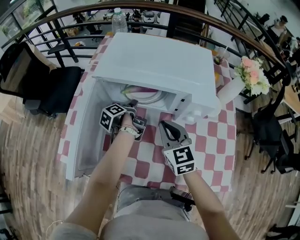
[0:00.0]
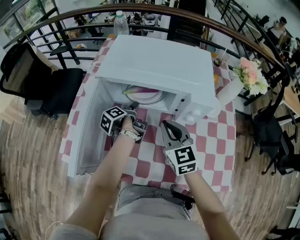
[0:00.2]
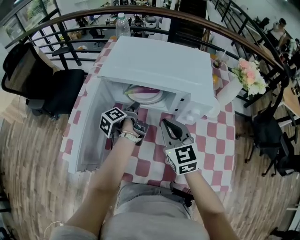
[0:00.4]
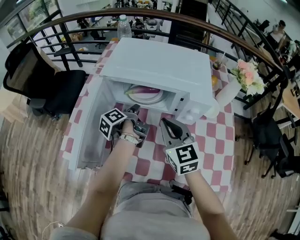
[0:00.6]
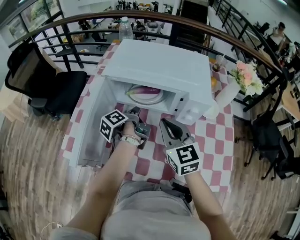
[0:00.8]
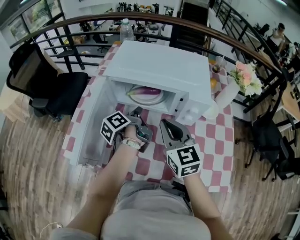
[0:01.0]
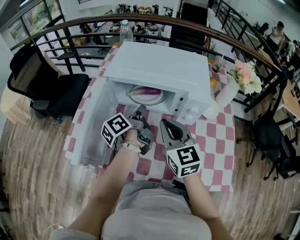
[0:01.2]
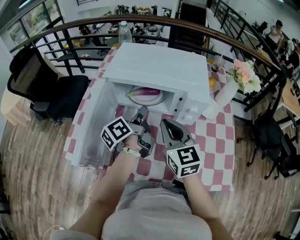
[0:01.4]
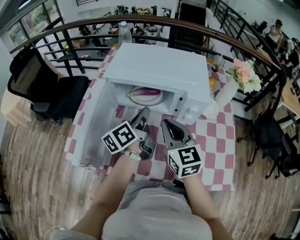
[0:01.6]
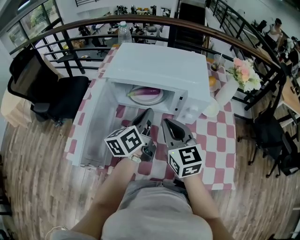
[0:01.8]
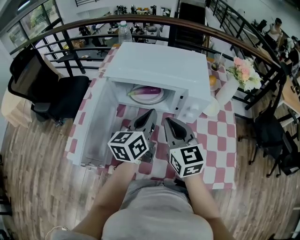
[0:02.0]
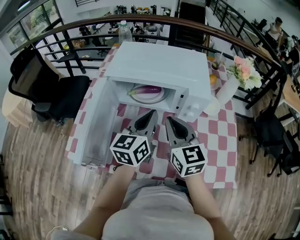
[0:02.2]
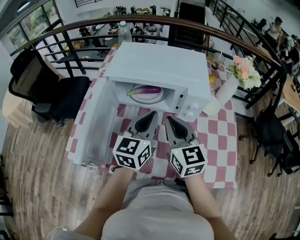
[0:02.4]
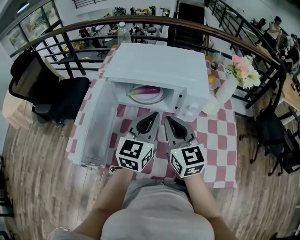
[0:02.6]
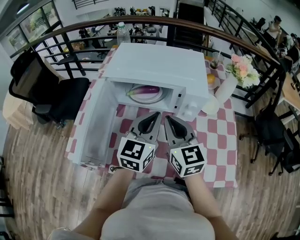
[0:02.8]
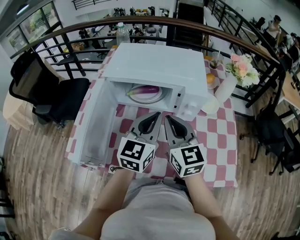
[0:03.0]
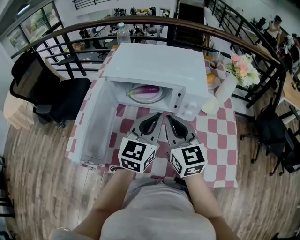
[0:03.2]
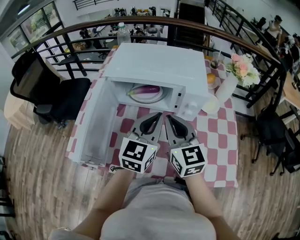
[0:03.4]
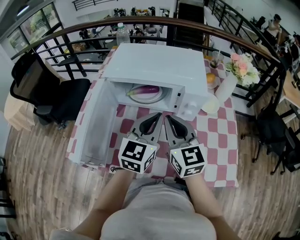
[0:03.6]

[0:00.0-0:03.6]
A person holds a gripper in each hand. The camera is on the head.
0:00.0 to 0:01.8: The right gripper is displaced upward by roughly 5 cm.

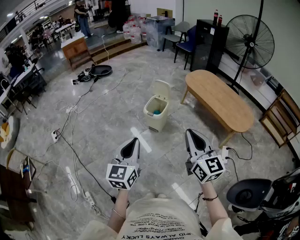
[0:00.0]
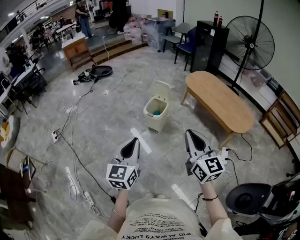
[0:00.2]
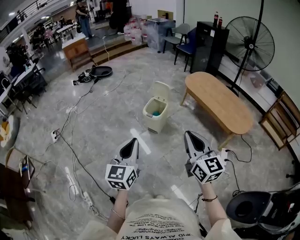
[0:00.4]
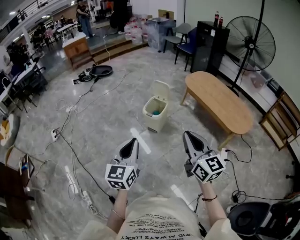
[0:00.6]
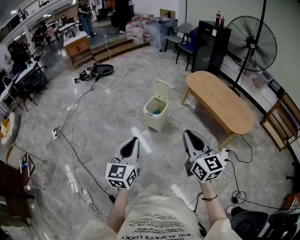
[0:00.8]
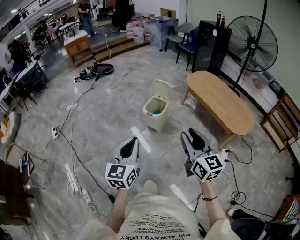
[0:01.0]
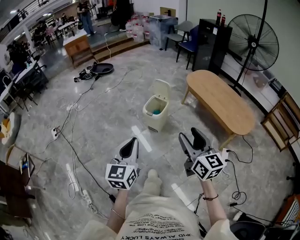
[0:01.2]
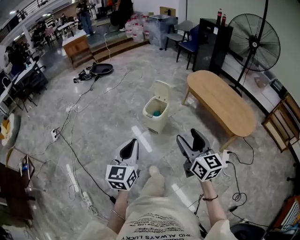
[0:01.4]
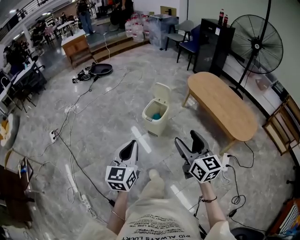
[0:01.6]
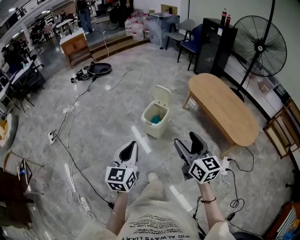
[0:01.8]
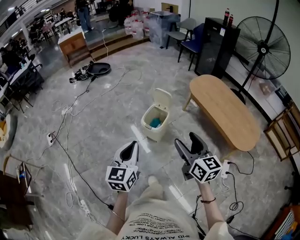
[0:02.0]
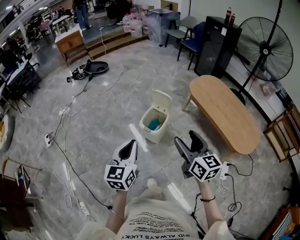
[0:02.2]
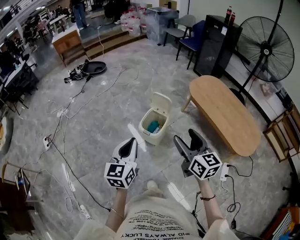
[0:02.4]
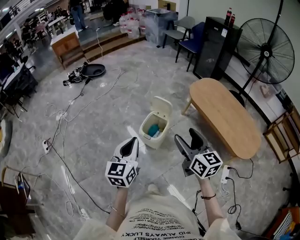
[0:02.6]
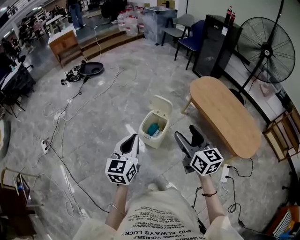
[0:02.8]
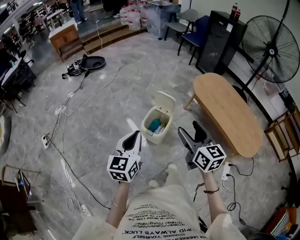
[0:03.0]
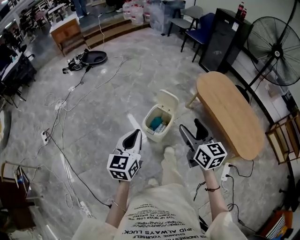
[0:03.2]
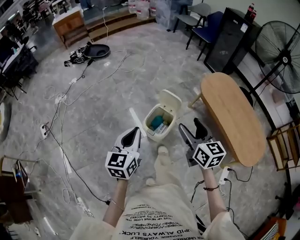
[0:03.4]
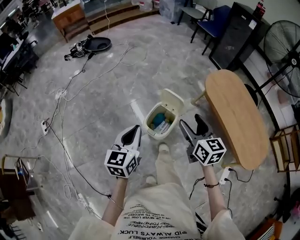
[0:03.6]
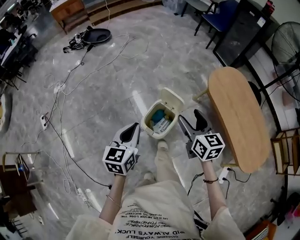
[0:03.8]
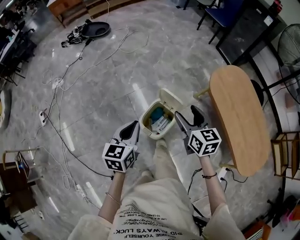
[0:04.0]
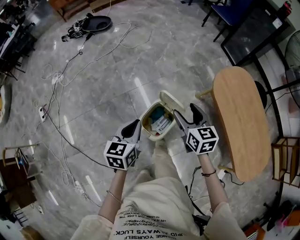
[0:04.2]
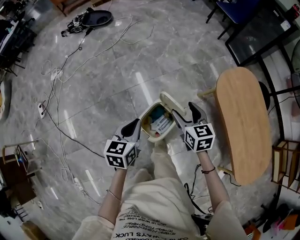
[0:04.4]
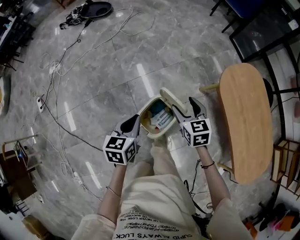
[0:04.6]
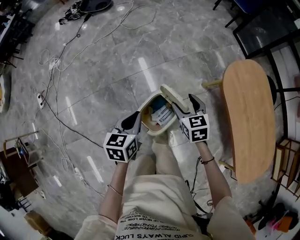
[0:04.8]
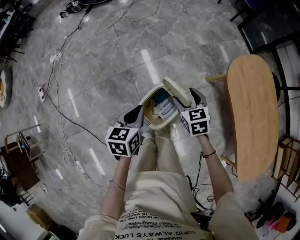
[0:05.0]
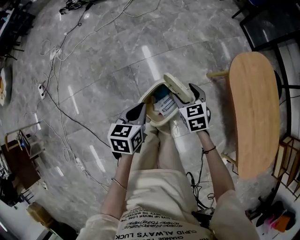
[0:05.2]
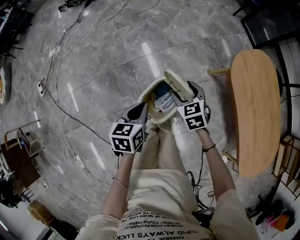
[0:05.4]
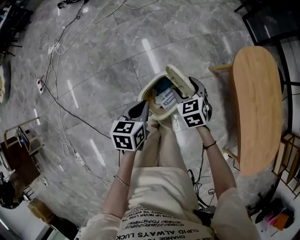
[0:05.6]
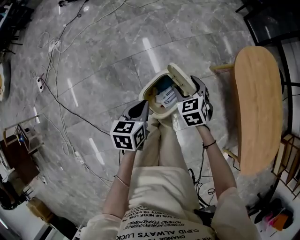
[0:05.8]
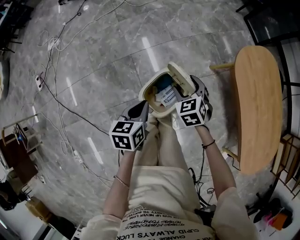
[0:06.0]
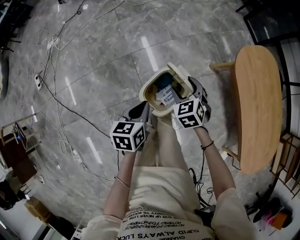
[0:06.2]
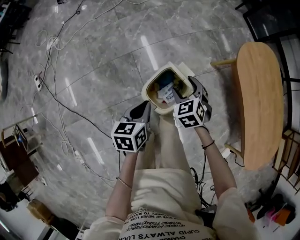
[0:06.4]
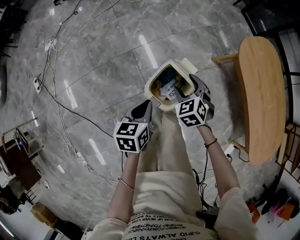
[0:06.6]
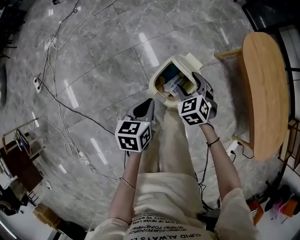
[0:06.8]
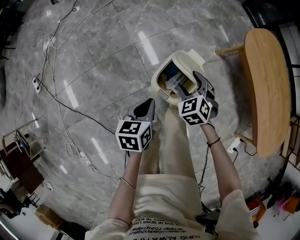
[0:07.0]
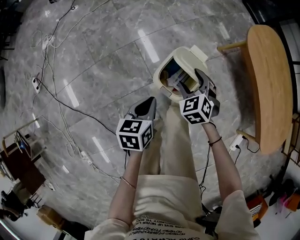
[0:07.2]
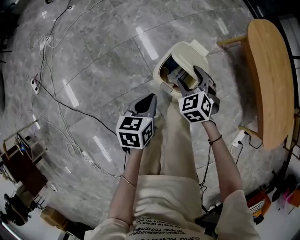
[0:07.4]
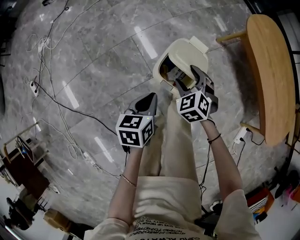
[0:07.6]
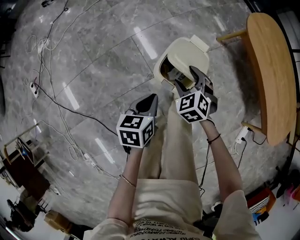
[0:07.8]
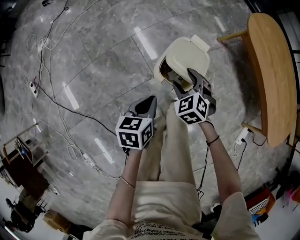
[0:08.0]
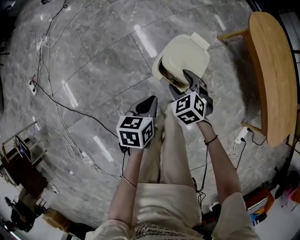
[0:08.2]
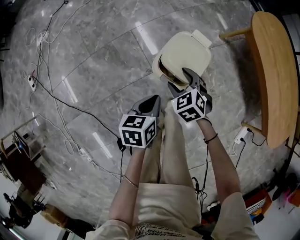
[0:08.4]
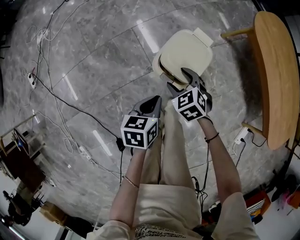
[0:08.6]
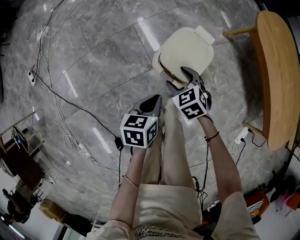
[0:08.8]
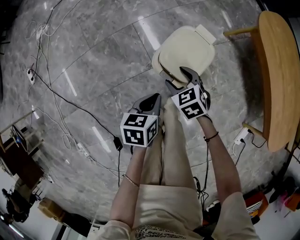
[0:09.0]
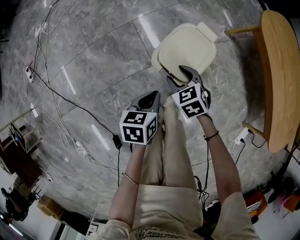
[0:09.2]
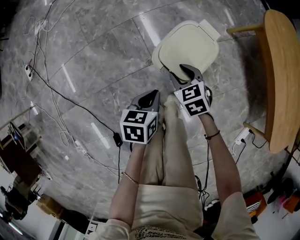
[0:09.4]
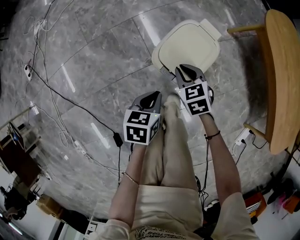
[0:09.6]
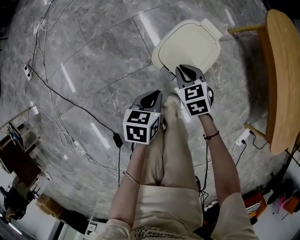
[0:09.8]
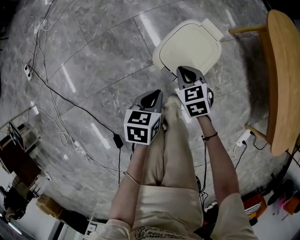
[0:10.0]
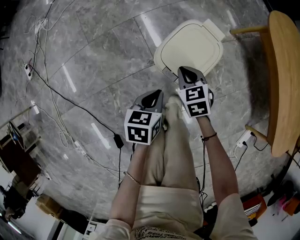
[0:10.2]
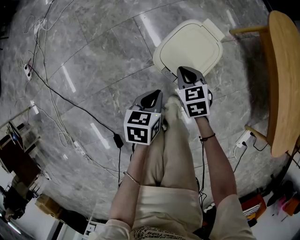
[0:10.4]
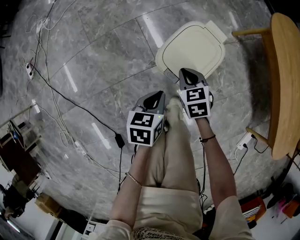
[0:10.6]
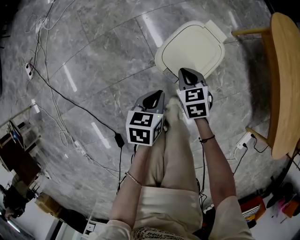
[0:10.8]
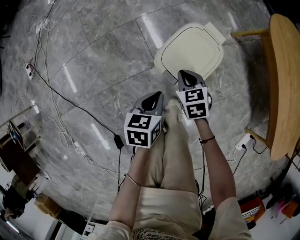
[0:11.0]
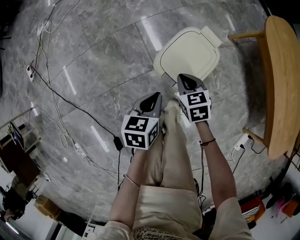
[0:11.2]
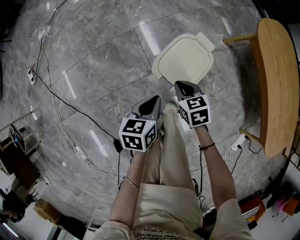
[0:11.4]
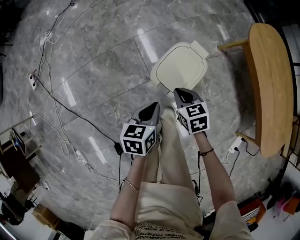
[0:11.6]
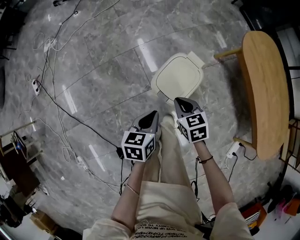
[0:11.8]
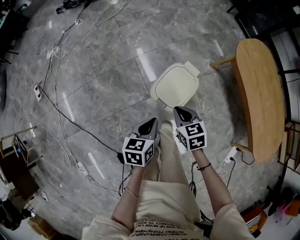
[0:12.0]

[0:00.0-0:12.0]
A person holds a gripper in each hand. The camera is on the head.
0:00.0 to 0:01.6: The right gripper shifts roughly 10 cm forward and downward, and opens its fingers. Meanwhile the left gripper heads forward, covering approximately 5 cm.
0:01.6 to 0:03.0: Both grippers travel together forward, about 25 cm.
0:03.0 to 0:04.4: The two grippers go some 35 cm forward and downward. The right gripper swivels some 30 degrees; the left gripper changes its angle by roughly 30 degrees.
0:04.4 to 0:06.0: Both grippers travel together downward, about 10 cm. The right gripper turns by roughly 30 degrees.
0:06.0 to 0:07.6: Both grippers move backward, to the left and downward, roughly 15 cm.
0:07.6 to 0:09.0: The two grippers go some 5 cm downward. The right gripper rotates about 20 degrees.
0:09.0 to 0:10.4: The left gripper moves downward, about 5 cm. Meanwhile the right gripper closes.
0:10.4 to 0:12.0: The two grippers go about 15 cm upward.

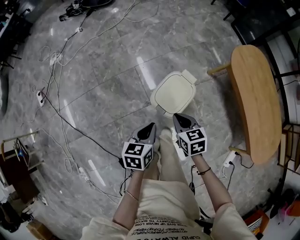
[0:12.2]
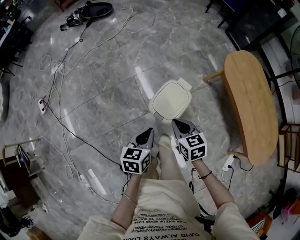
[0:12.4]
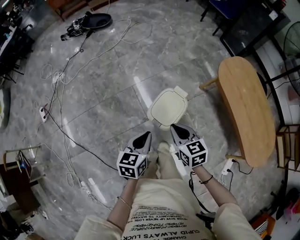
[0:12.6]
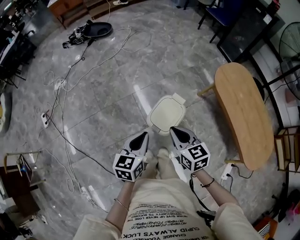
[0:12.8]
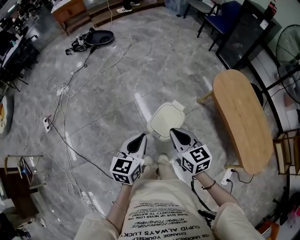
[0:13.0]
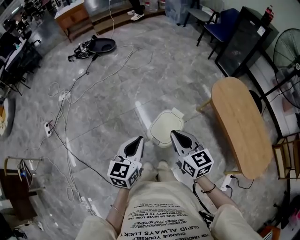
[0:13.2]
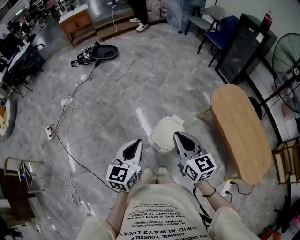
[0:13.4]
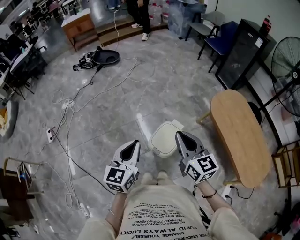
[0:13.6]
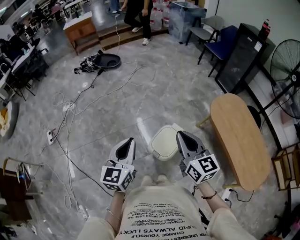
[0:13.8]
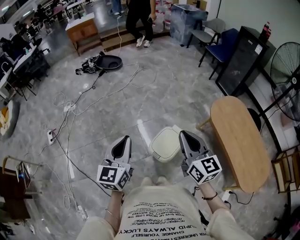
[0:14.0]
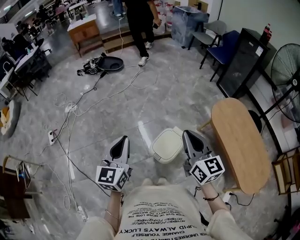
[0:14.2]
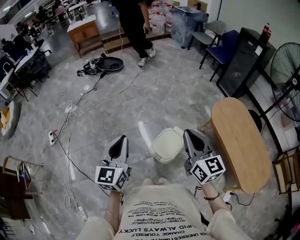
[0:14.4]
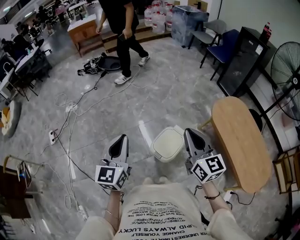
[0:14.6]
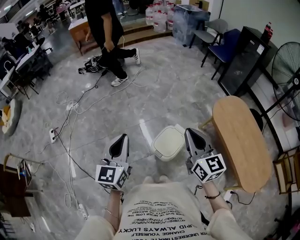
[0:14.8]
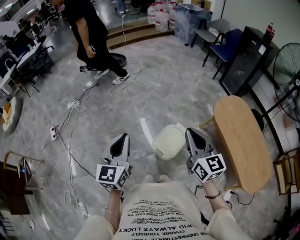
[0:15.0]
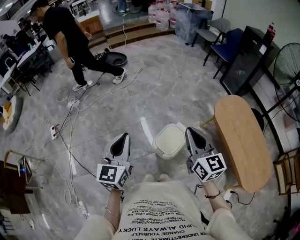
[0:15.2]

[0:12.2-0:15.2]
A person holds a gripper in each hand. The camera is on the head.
0:12.2 to 0:13.8: The two grippers go about 30 cm upward. The left gripper points its fingers roughly 30 degrees further upward. Meanwhile the right gripper tips its fingers upward by roughly 40 degrees.
0:13.8 to 0:15.2: The grippers move only a little.

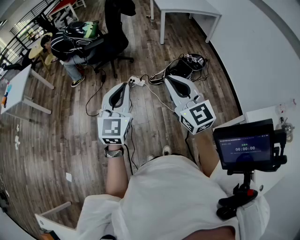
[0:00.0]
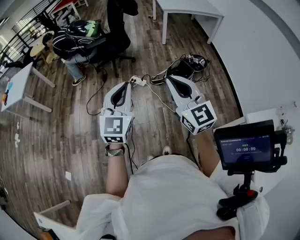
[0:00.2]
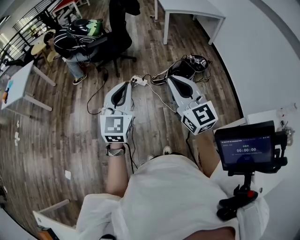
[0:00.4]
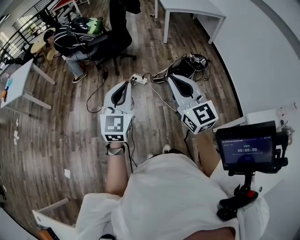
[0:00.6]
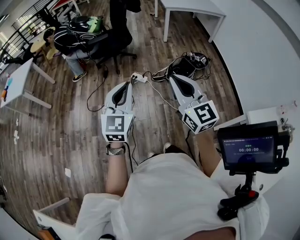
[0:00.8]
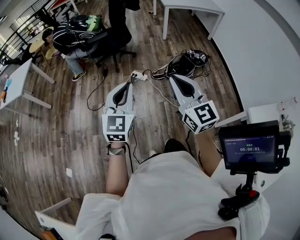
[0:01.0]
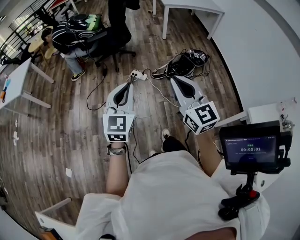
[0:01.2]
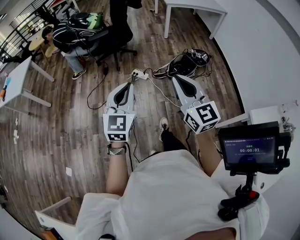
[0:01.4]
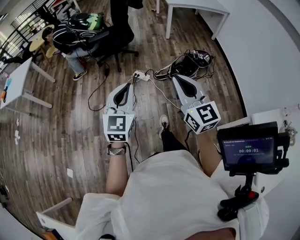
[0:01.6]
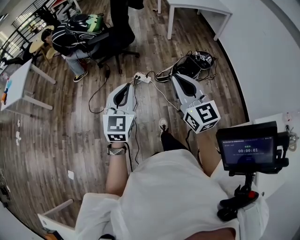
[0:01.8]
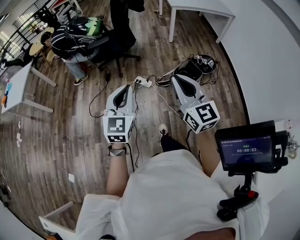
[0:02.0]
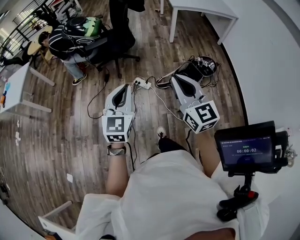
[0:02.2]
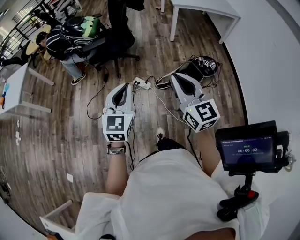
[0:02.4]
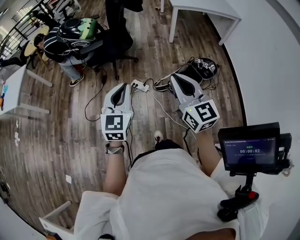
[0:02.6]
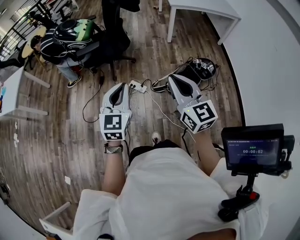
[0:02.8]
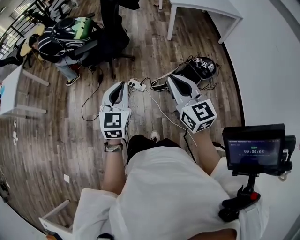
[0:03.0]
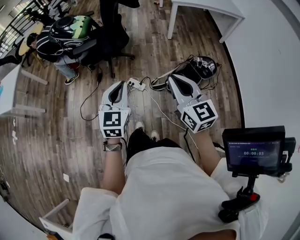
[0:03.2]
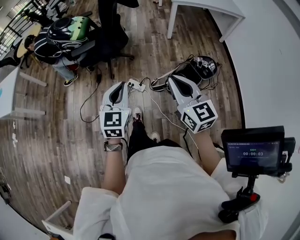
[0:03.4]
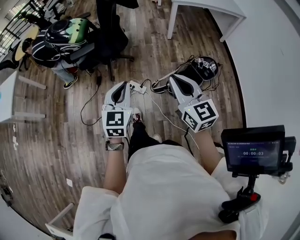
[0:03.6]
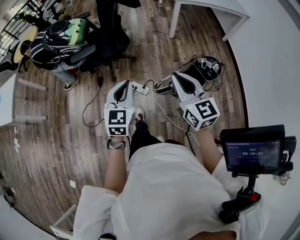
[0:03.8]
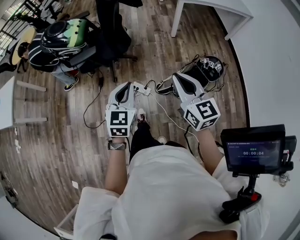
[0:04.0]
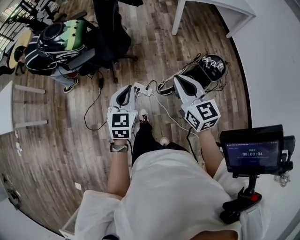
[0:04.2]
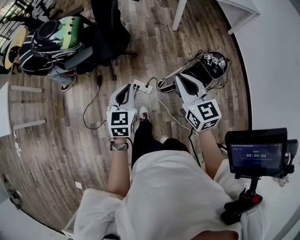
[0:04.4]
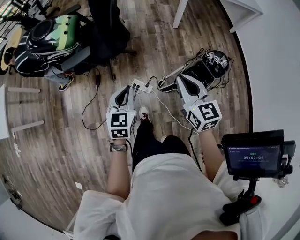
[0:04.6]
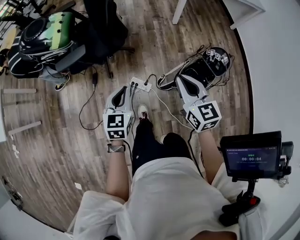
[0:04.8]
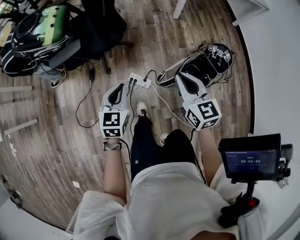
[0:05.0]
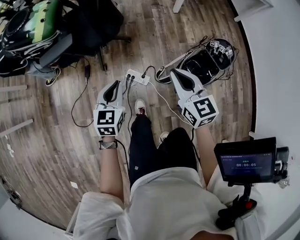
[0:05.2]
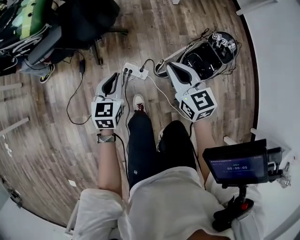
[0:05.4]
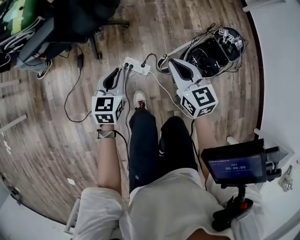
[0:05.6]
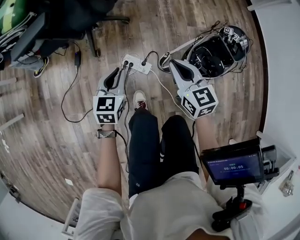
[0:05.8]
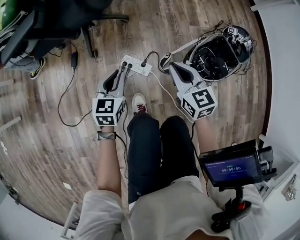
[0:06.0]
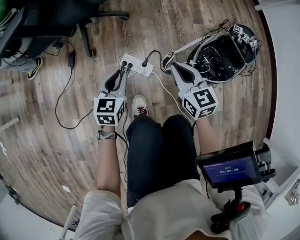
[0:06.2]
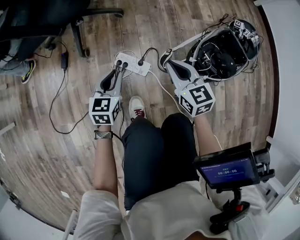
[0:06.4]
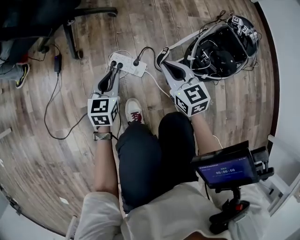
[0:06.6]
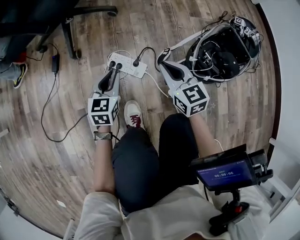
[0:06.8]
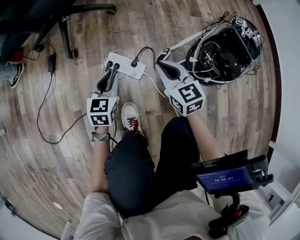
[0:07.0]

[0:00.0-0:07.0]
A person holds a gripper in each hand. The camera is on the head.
0:00.0 to 0:01.4: The left gripper moves some 5 cm.
0:01.4 to 0:02.8: Both grippers travel together forward, roughly 35 cm.
0:02.8 to 0:04.2: Both grippers travel together forward and downward, about 25 cm.
0:04.2 to 0:05.6: Both grippers travel together downward, about 40 cm.
0:05.6 to 0:07.0: The two grippers go about 35 cm downward.
